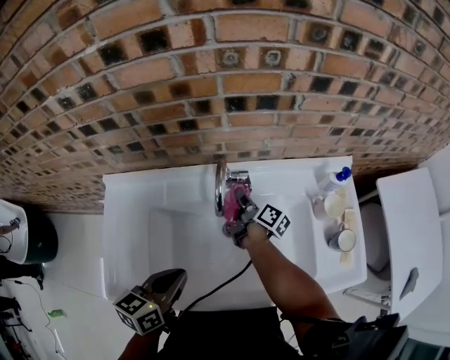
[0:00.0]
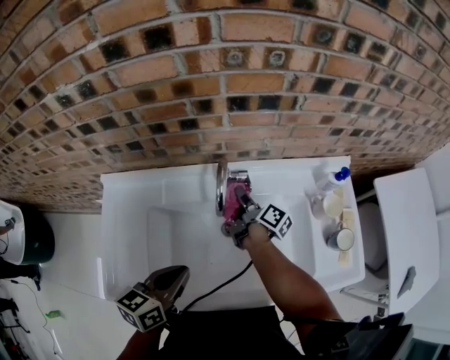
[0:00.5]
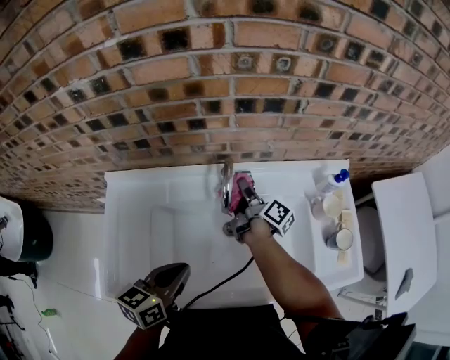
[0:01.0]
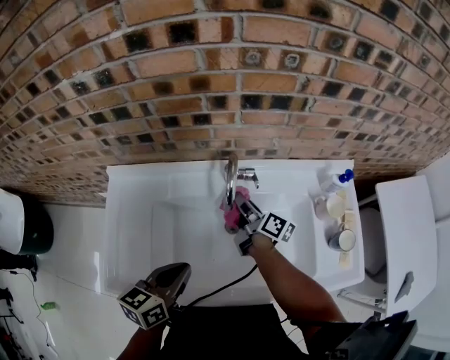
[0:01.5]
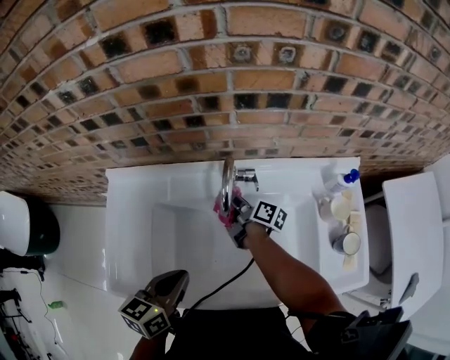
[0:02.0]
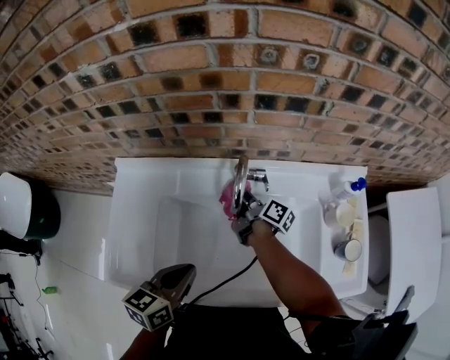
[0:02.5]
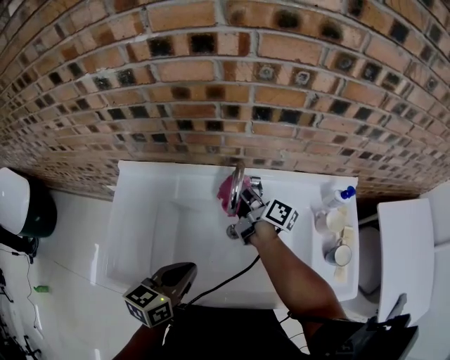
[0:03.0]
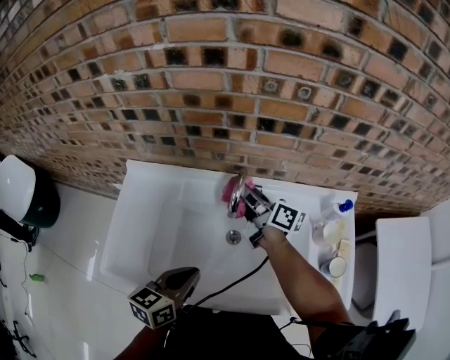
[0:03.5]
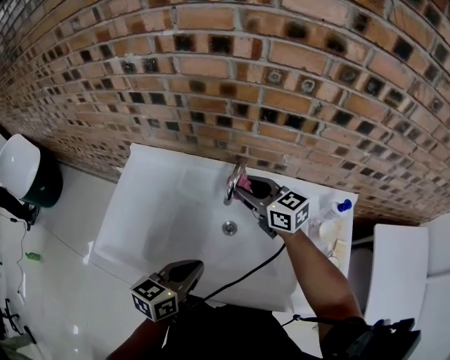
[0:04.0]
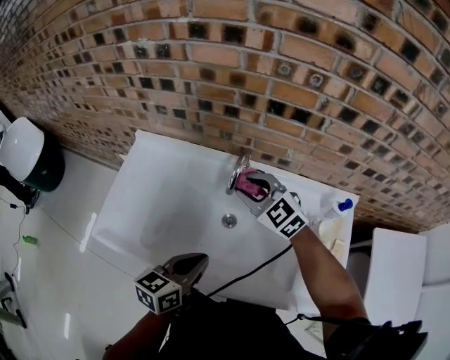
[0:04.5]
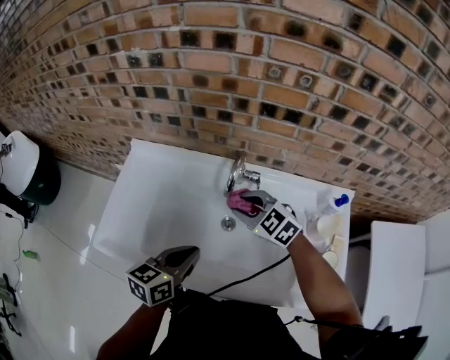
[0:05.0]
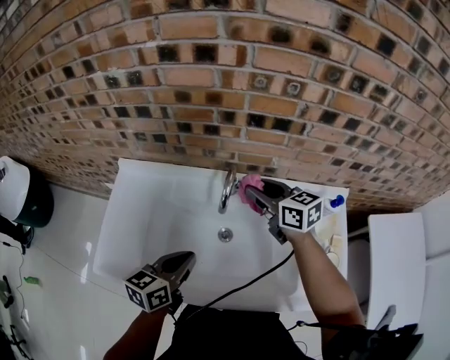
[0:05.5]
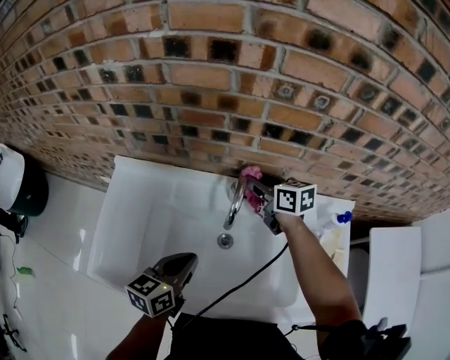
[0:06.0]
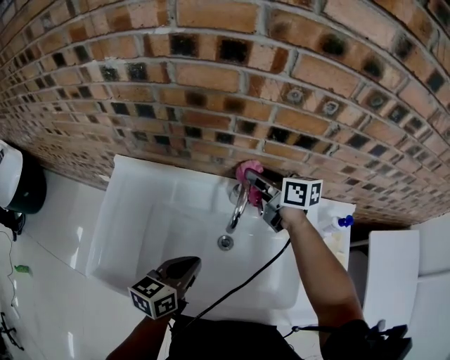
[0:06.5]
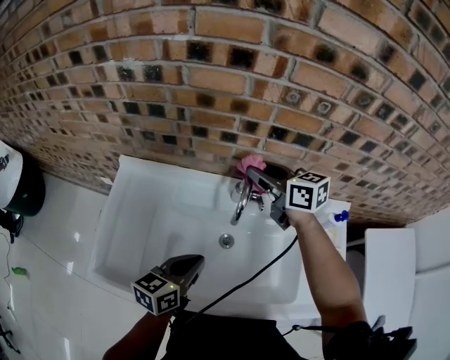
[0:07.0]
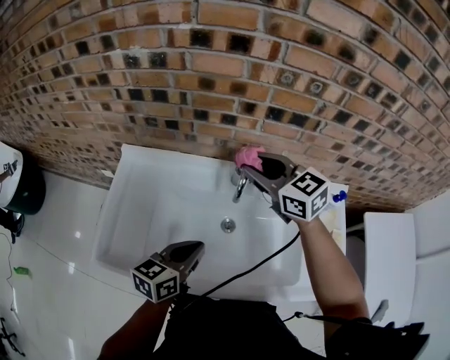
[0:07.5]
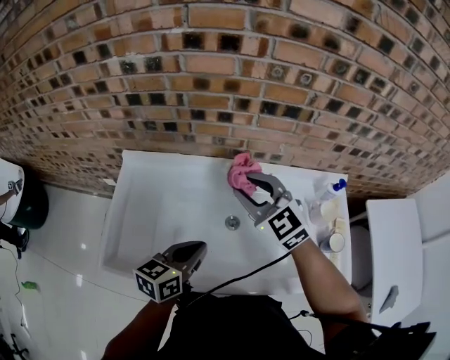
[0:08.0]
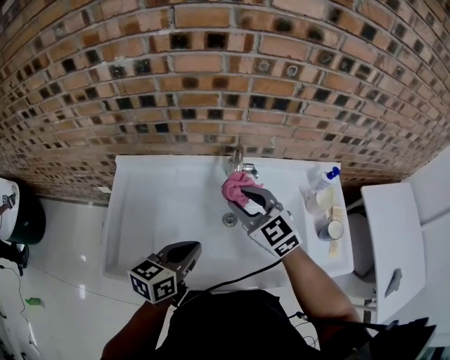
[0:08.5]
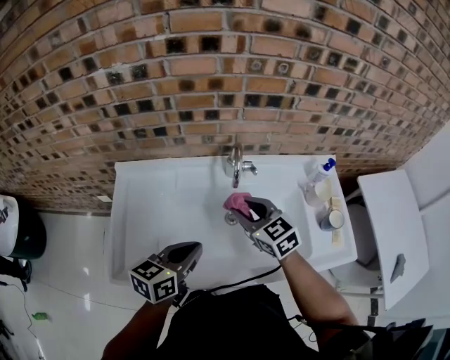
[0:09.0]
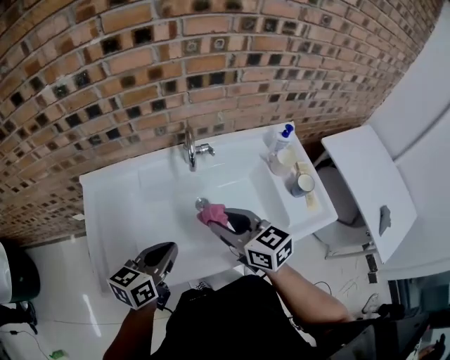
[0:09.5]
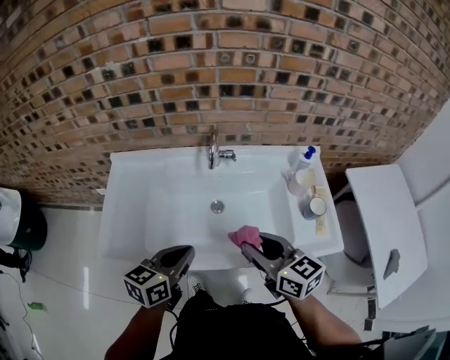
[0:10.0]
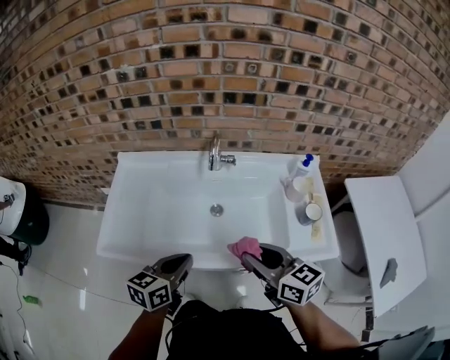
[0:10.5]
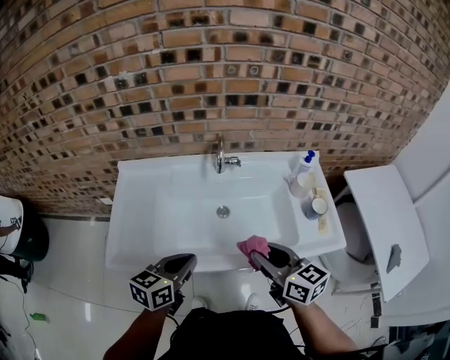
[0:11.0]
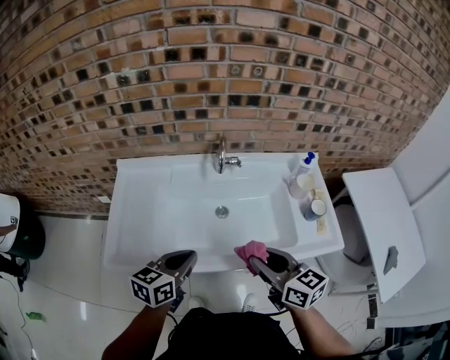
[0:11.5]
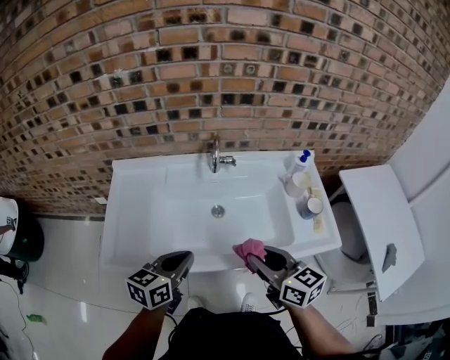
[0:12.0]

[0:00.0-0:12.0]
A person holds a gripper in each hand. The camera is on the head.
0:00.0 to 0:02.0: The right gripper moves to the left, some 5 cm, and reaches roughly 5 cm upward, then returns.
0:02.0 to 0:04.0: The left gripper heads to the right, covering some 10 cm. Meanwhile the right gripper moves upward, some 20 cm, and rolls counterclockwise, seen from behind, by about 70 degrees.
0:04.0 to 0:06.0: The right gripper heads forward and to the right, covering some 10 cm, and rotates about 30 degrees. Meanwhile the left gripper goes approximately 10 cm forward.
0:06.0 to 0:08.0: The left gripper moves backward, roughly 5 cm; the right gripper is displaced backward, upward and to the left by roughly 20 cm, and twists about 50 degrees counterclockwise, seen from behind.
0:08.0 to 0:10.0: The right gripper heads backward and to the right, covering some 25 cm, and rotates around the line of its fingers by roughly 40 degrees, clockwise from behind, while the left gripper travels backward by roughly 10 cm.
0:10.0 to 0:12.0: There are only small adjustments of the grippers.

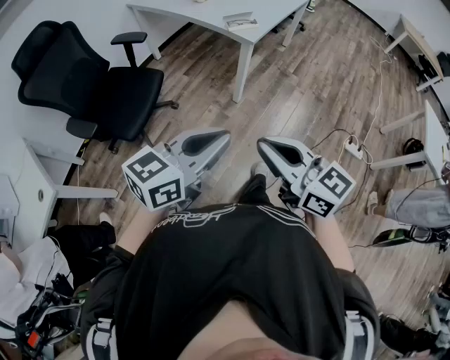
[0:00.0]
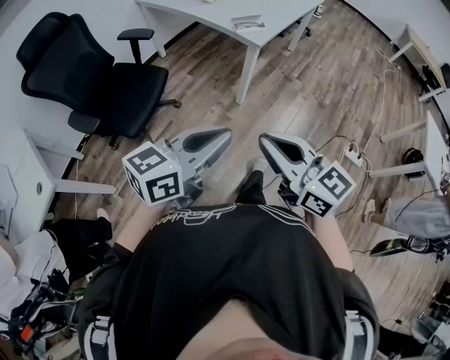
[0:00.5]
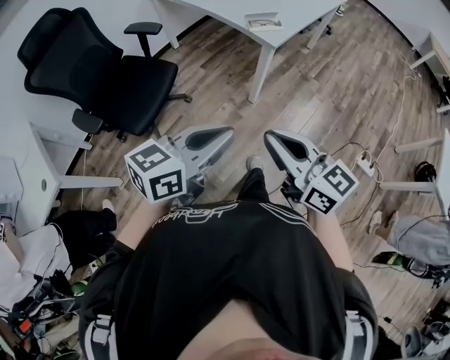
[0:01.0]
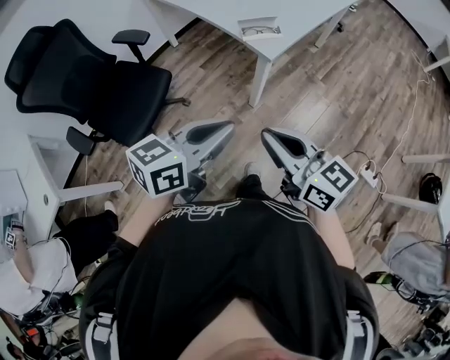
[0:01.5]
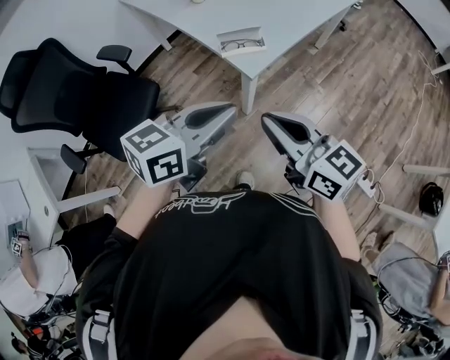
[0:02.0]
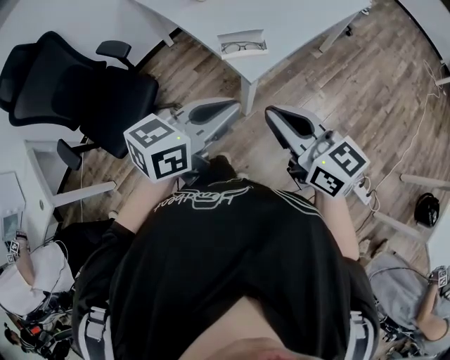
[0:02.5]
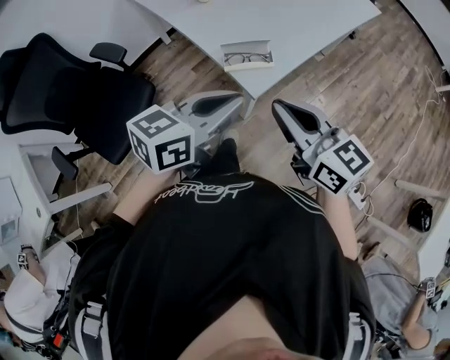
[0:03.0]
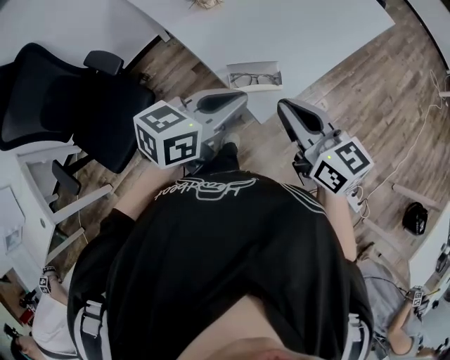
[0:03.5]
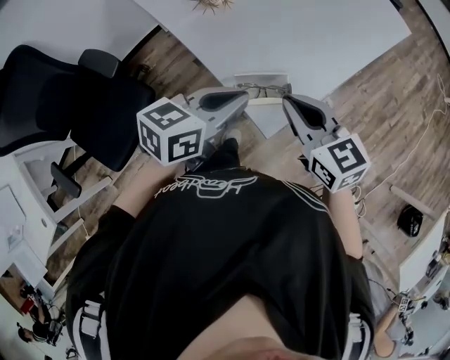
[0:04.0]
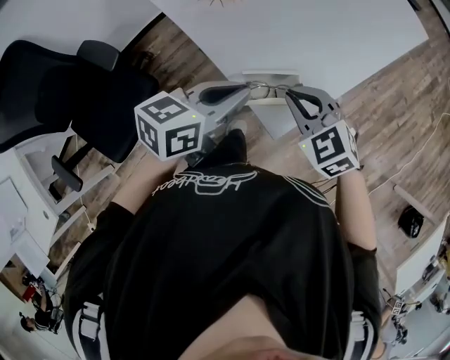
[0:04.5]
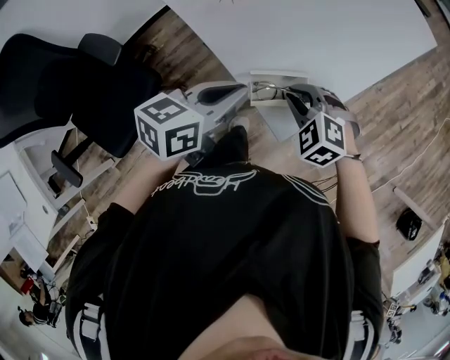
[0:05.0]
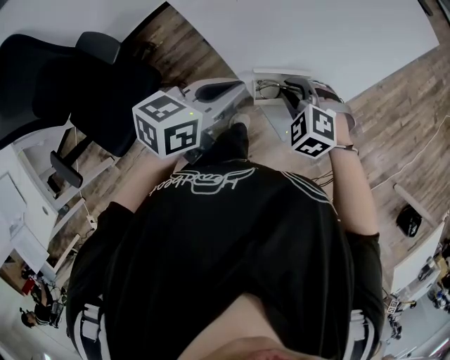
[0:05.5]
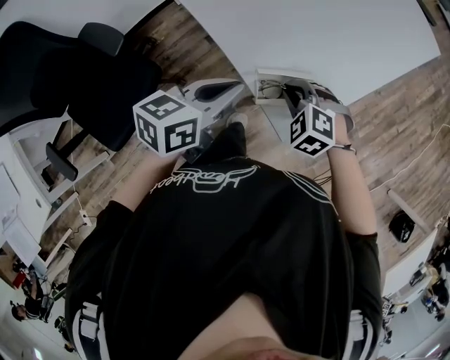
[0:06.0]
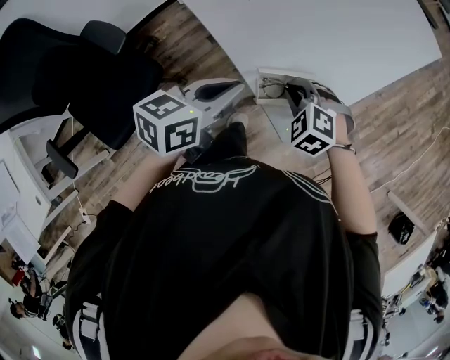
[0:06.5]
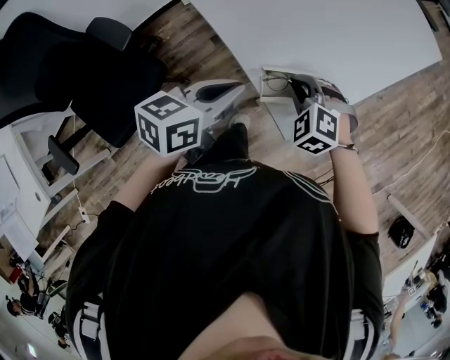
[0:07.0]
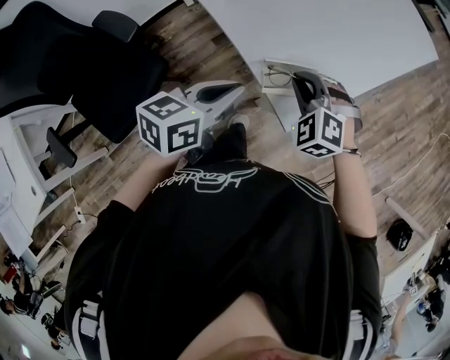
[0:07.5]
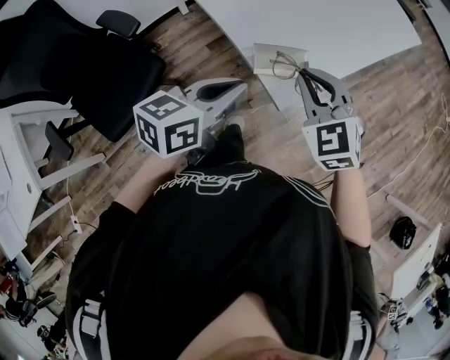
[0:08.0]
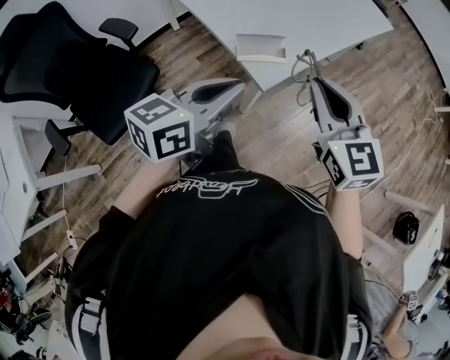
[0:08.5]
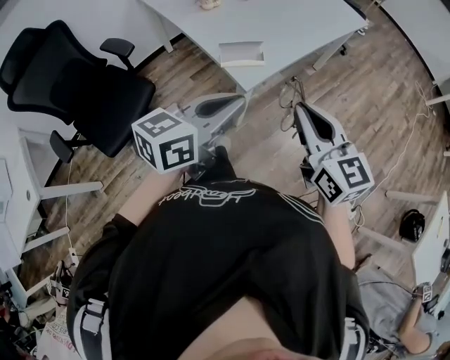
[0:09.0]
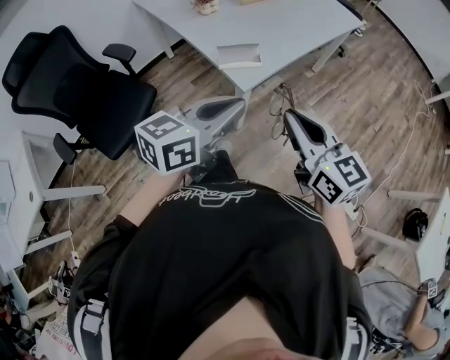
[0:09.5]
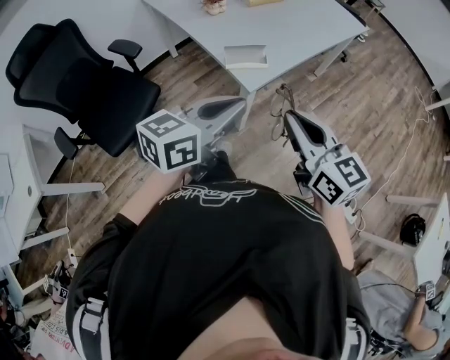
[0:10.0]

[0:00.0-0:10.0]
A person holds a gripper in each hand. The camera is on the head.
0:00.0 to 0:02.0: The two grippers go about 40 cm forward.
0:02.0 to 0:04.0: The grippers both shift forward by some 30 cm. The right gripper rotates about 20 degrees.
0:04.0 to 0:06.0: The left gripper heads downward and to the left, covering approximately 10 cm; the right gripper shifts about 15 cm downward, and angles its fingers downward, by about 40 degrees.
0:06.0 to 0:08.0: The right gripper shifts approximately 20 cm upward and backward, and points its fingers some 30 degrees further upward; the left gripper moves backward and upward, roughly 15 cm.
0:08.0 to 0:10.0: Both grippers travel together backward, to the right and upward, roughly 25 cm. The right gripper rolls clockwise, seen from behind, by about 40 degrees.

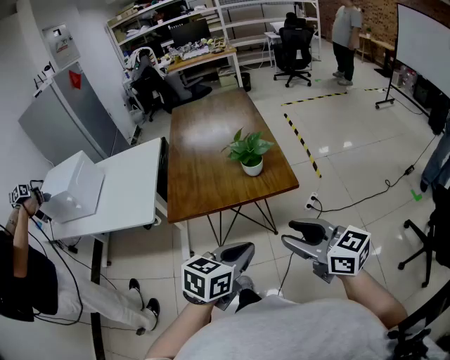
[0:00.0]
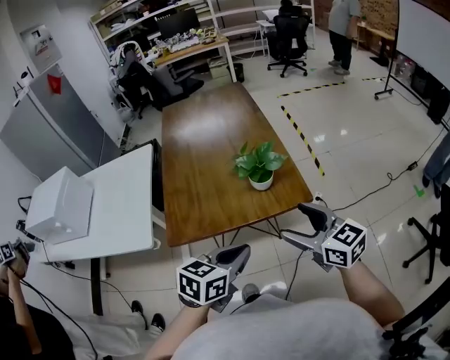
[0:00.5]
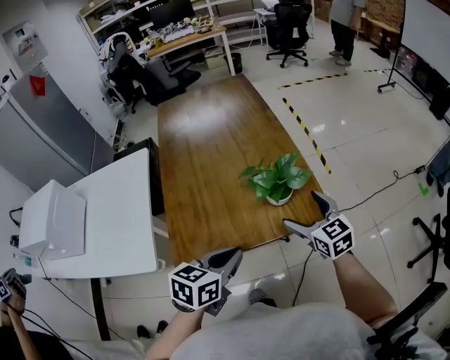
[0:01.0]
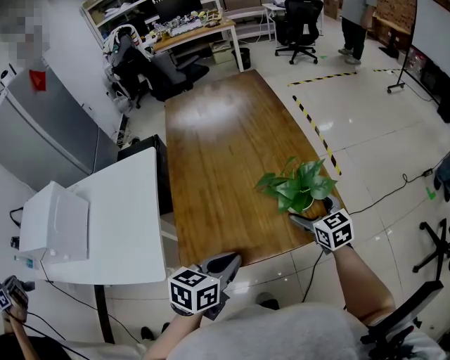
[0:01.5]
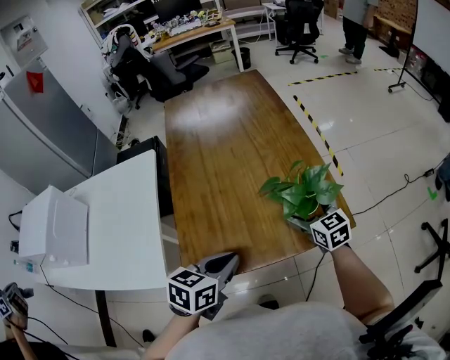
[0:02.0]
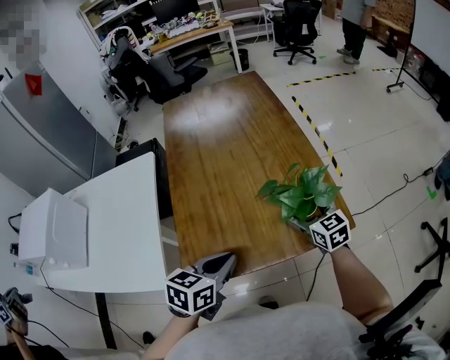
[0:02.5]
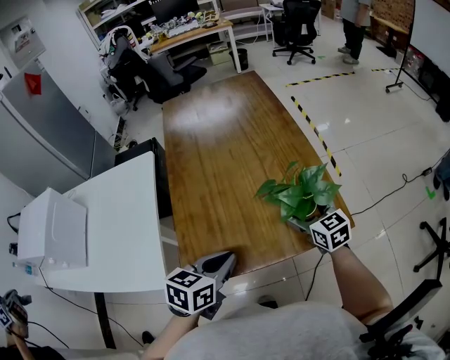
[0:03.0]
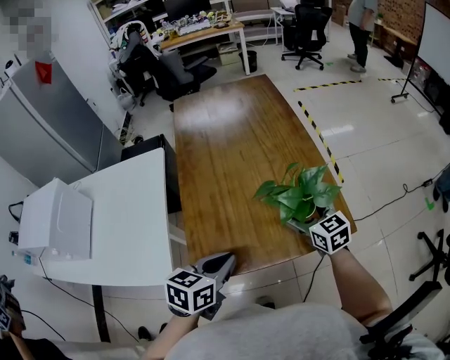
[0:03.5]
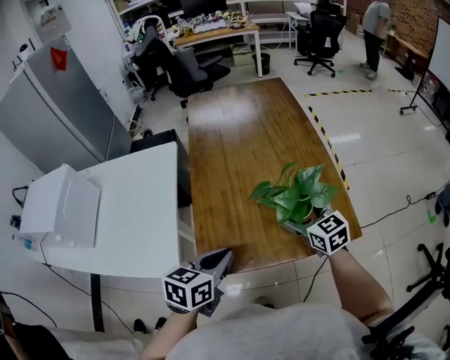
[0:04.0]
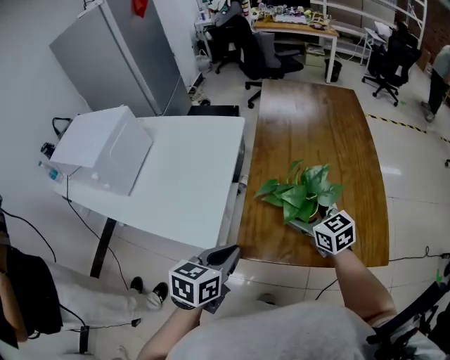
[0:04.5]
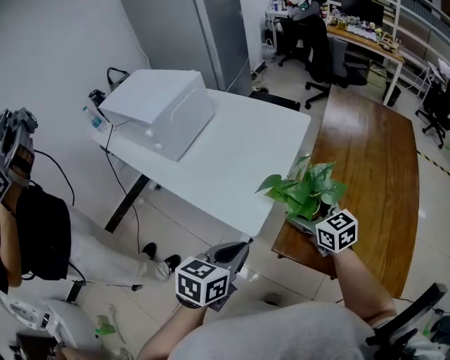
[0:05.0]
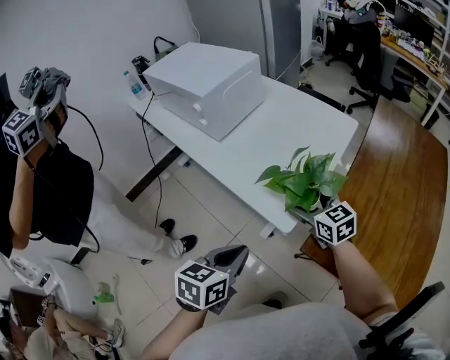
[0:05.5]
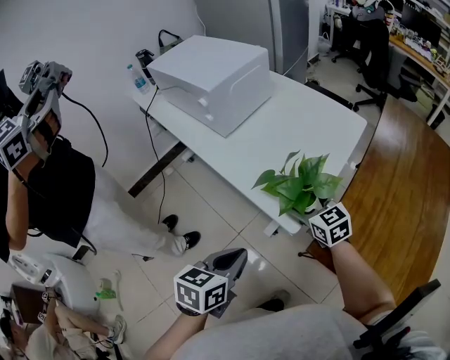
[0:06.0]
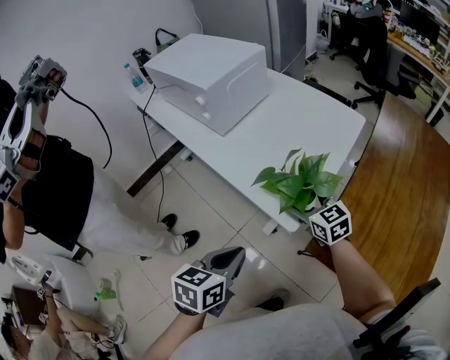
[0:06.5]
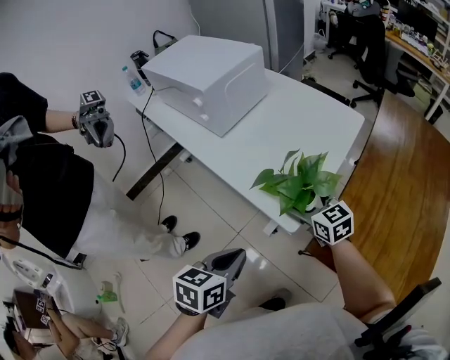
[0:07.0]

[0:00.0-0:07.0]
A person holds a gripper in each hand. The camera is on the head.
0:00.0 to 0:02.0: The right gripper moves forward and downward, about 50 cm, swivels roughly 30 degrees, and opens up; the left gripper moves forward and to the left, approximately 40 cm.
0:02.0 to 0:03.5: The right gripper changes place by some 5 cm.
0:03.5 to 0:05.0: The right gripper ends up approximately 35 cm from where it was, and rotates approximately 40 degrees; the left gripper changes place by some 25 cm, and rotates about 40 degrees.
0:05.0 to 0:07.0: The grippers both shift to the left by roughly 15 cm.
